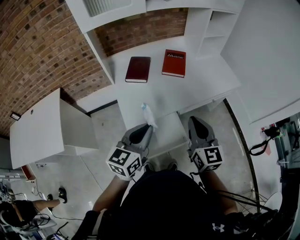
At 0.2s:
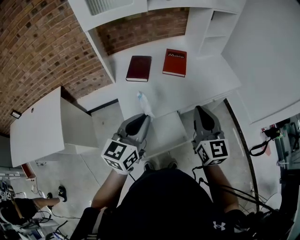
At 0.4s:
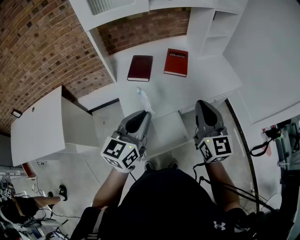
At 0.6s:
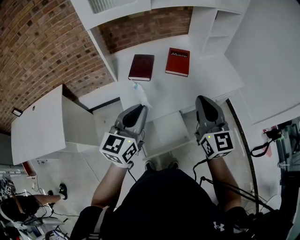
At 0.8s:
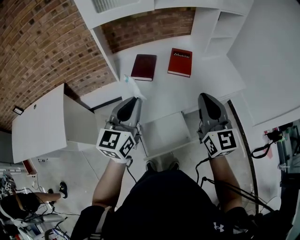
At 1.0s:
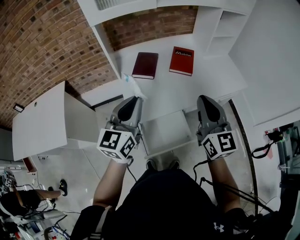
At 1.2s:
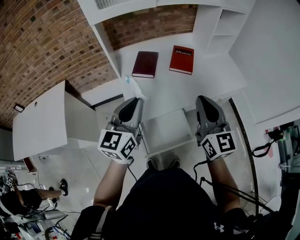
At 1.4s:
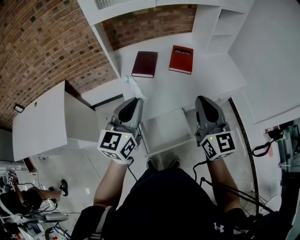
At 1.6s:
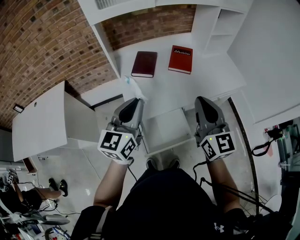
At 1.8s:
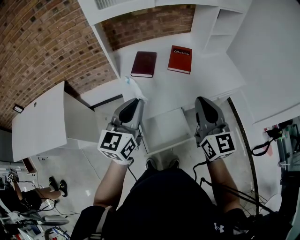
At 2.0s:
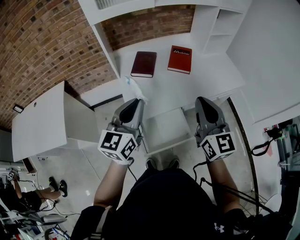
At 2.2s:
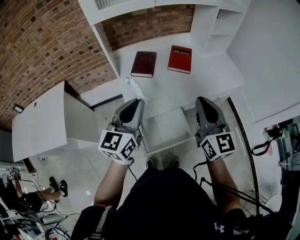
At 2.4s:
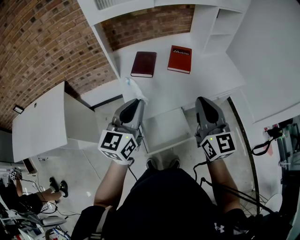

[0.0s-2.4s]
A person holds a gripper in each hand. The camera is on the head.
0.0s to 1.2s: The right gripper travels upward by some 5 cm, while the left gripper shifts about 10 cm upward, to the left and forward.
1.2s to 2.4s: The grippers make only small movements.

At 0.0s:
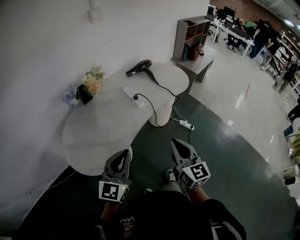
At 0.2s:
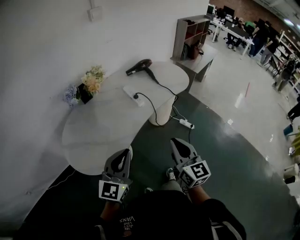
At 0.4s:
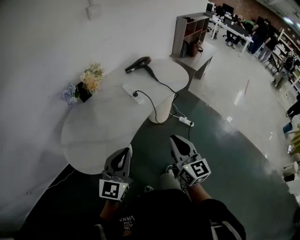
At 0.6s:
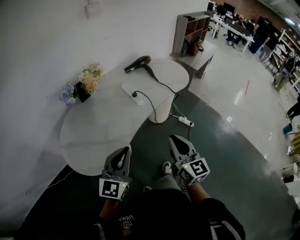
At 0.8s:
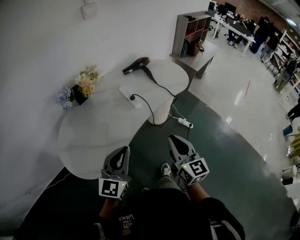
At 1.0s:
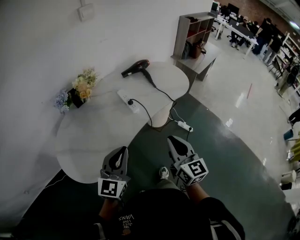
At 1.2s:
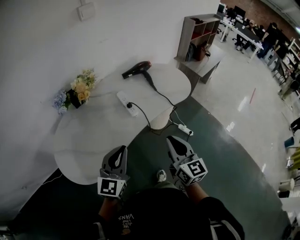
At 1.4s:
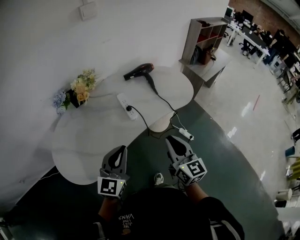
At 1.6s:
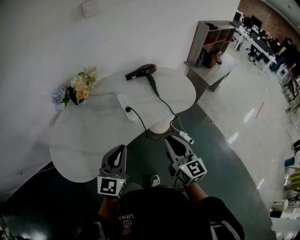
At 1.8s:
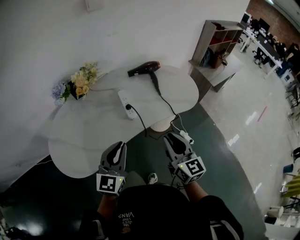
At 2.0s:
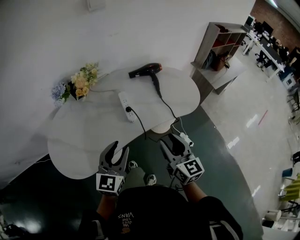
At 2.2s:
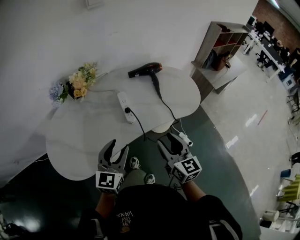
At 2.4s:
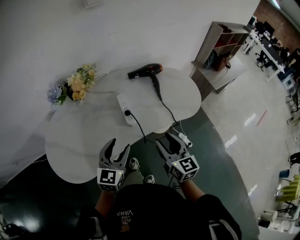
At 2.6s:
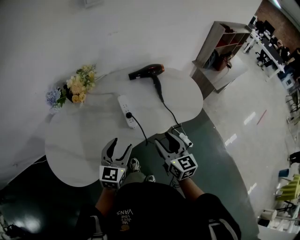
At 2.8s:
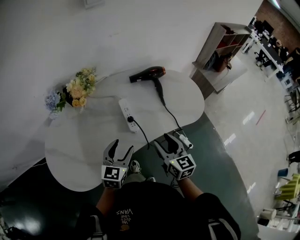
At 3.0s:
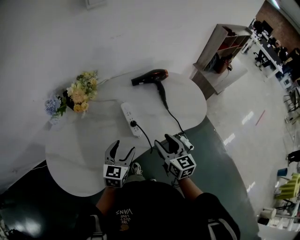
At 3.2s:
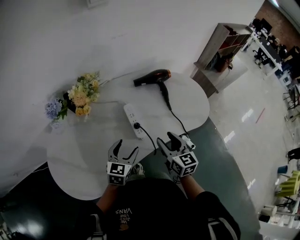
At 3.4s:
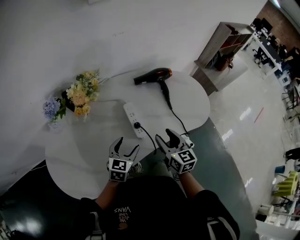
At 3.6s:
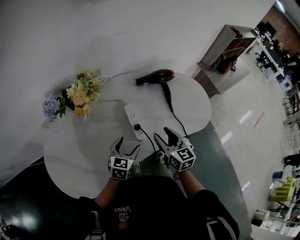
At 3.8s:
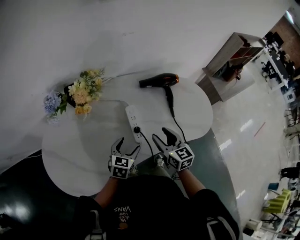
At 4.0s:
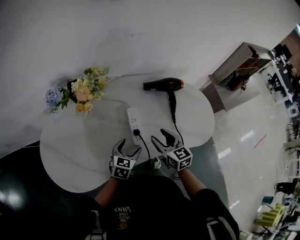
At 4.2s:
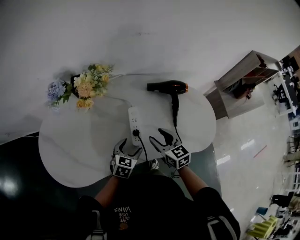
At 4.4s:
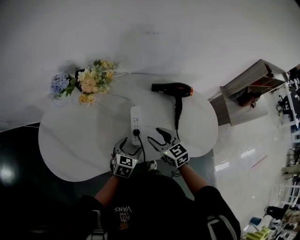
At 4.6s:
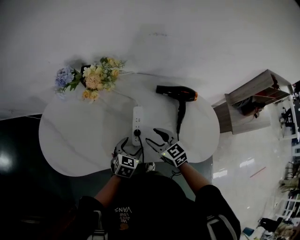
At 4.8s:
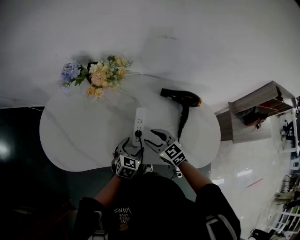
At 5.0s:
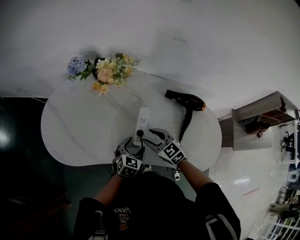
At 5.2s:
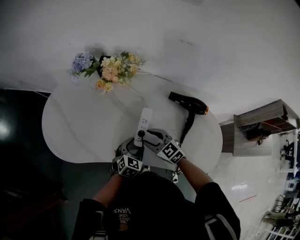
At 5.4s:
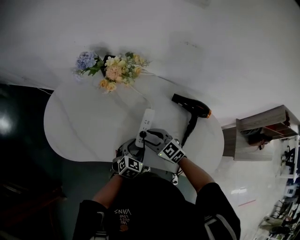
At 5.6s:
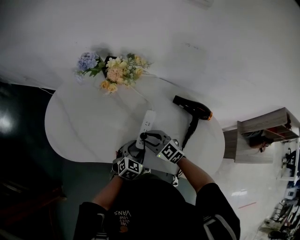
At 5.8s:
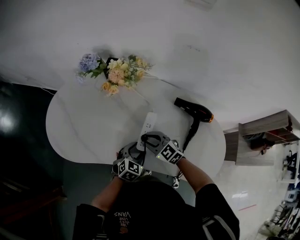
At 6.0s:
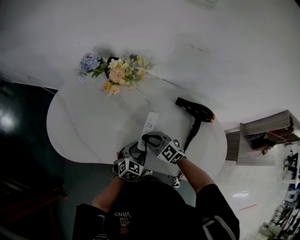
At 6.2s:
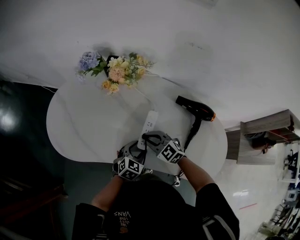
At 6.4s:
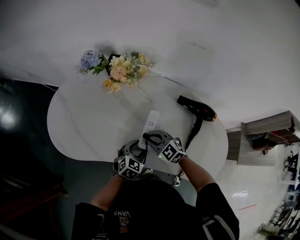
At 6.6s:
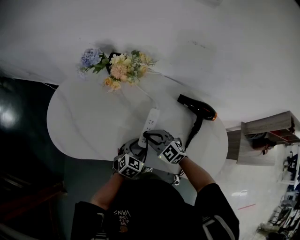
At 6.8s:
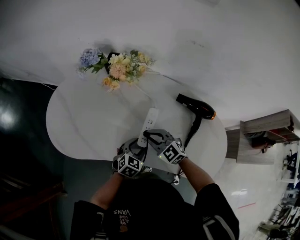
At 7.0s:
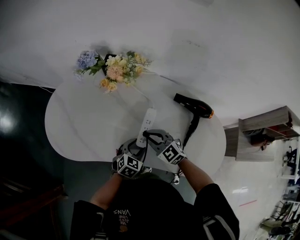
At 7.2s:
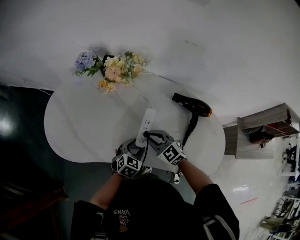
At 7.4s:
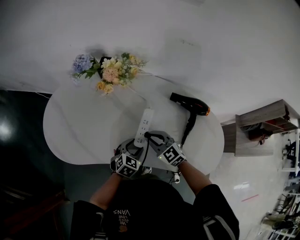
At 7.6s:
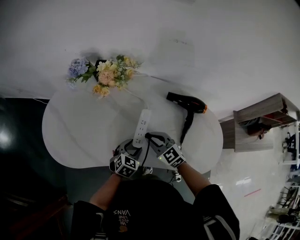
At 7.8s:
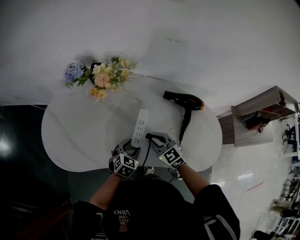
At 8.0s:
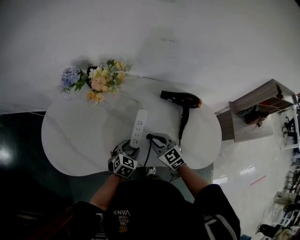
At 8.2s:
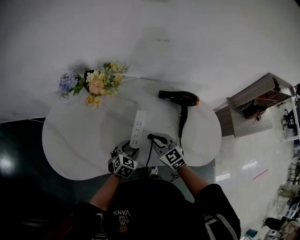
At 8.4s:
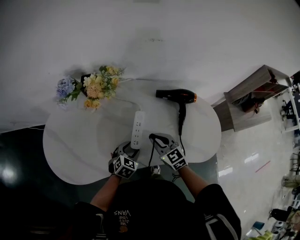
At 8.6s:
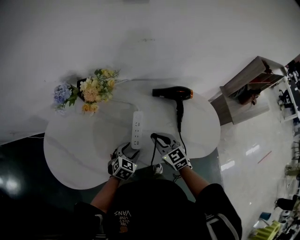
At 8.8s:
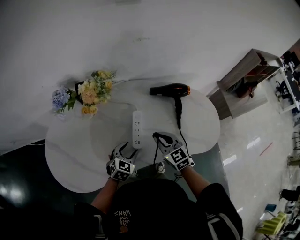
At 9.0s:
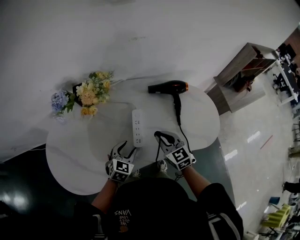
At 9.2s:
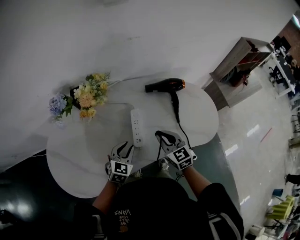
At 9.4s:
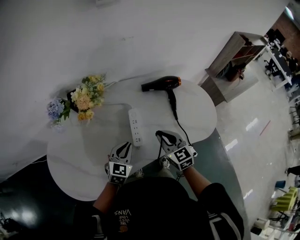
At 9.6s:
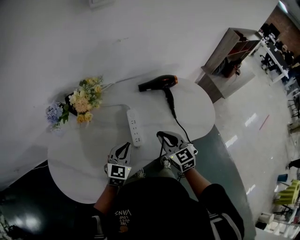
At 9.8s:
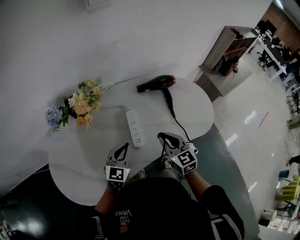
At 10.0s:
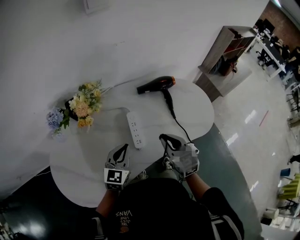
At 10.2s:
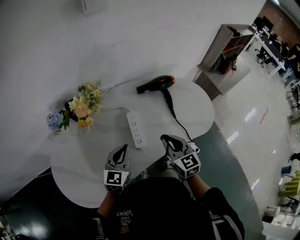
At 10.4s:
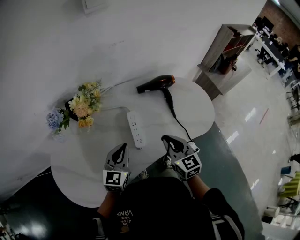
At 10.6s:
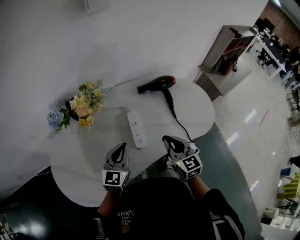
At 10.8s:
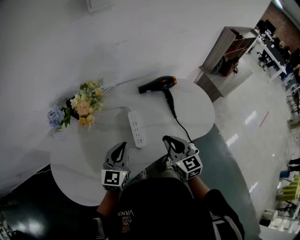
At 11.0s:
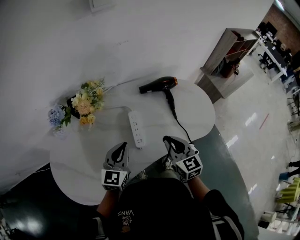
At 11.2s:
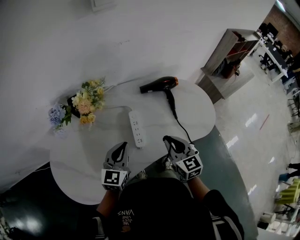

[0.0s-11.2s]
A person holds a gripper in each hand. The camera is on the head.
0.0s to 1.6s: The two grippers go about 20 cm forward and to the right.
1.6s to 3.2s: The two grippers go approximately 25 cm forward and downward. The left gripper rotates approximately 30 degrees, and opens. Meanwhile the right gripper opens.
3.2s to 4.8s: The left gripper is displaced downward by some 10 cm, and swivels approximately 30 degrees. Meanwhile the right gripper moves approximately 15 cm, and swivels some 60 degrees.
4.8s to 6.4s: The right gripper changes place by roughly 5 cm, turns by approximately 30 degrees, and closes its fingers.
6.4s to 8.0s: The right gripper ends up approximately 5 cm from where it was, and turns by approximately 30 degrees.
8.0s to 9.6s: The left gripper is displaced upward by approximately 10 cm, rotates about 30 degrees, and closes up; the right gripper moves approximately 10 cm, and rotates some 40 degrees.
9.6s to 11.2s: The left gripper heads upward, covering about 5 cm.

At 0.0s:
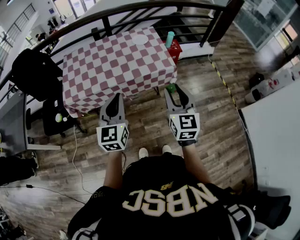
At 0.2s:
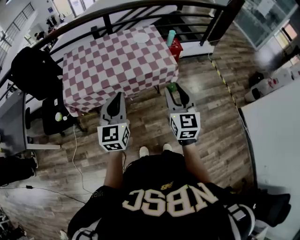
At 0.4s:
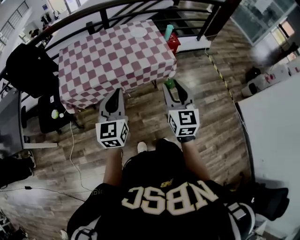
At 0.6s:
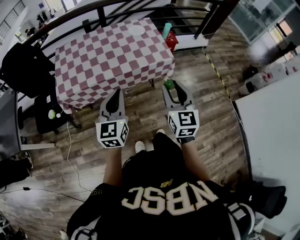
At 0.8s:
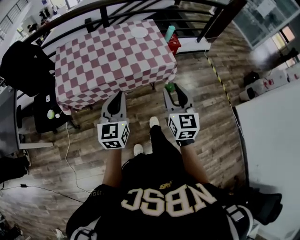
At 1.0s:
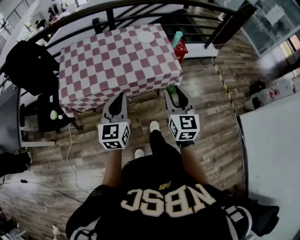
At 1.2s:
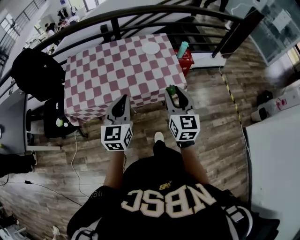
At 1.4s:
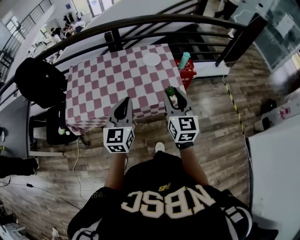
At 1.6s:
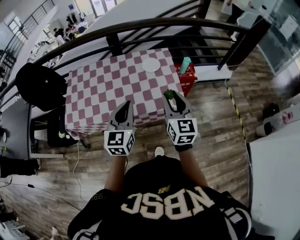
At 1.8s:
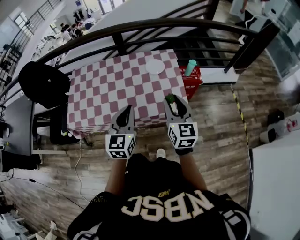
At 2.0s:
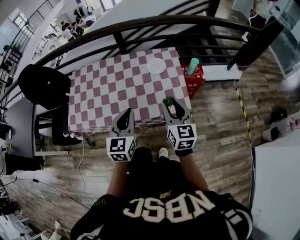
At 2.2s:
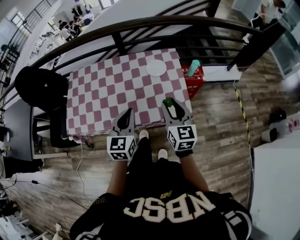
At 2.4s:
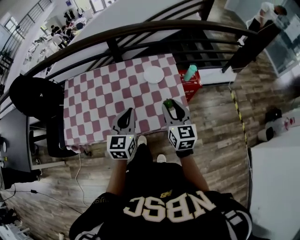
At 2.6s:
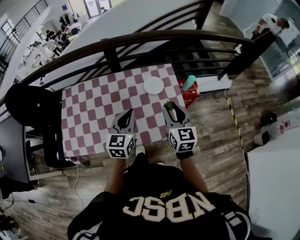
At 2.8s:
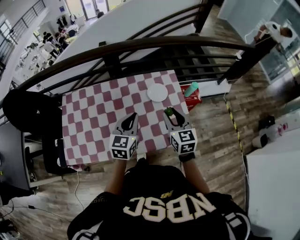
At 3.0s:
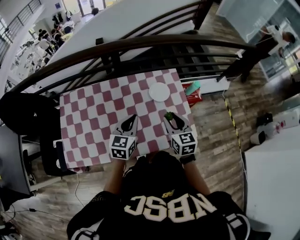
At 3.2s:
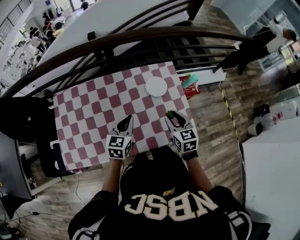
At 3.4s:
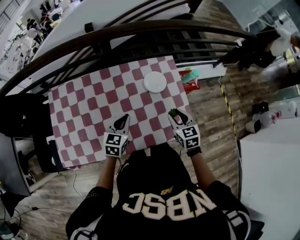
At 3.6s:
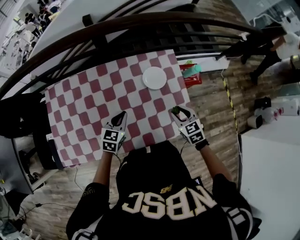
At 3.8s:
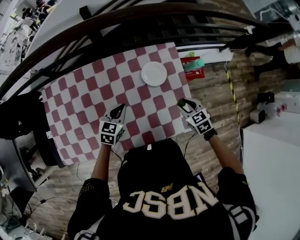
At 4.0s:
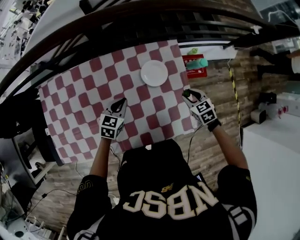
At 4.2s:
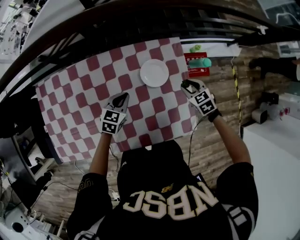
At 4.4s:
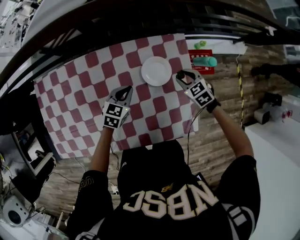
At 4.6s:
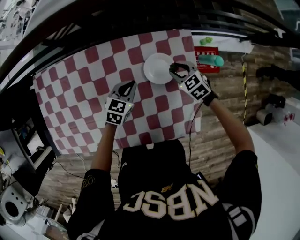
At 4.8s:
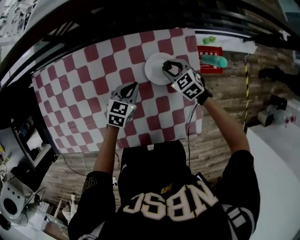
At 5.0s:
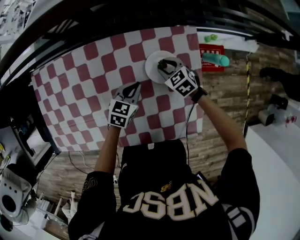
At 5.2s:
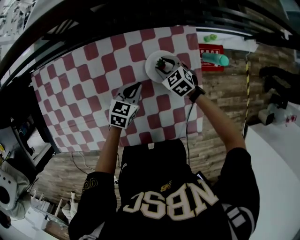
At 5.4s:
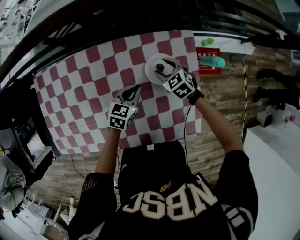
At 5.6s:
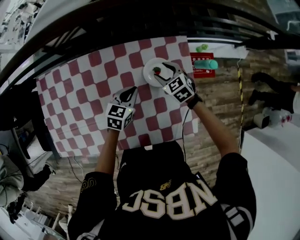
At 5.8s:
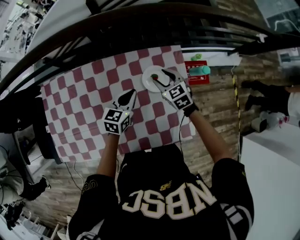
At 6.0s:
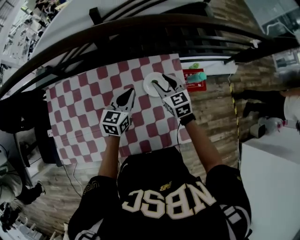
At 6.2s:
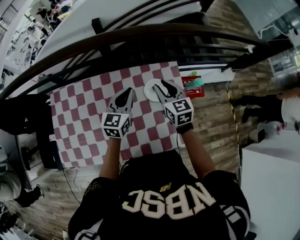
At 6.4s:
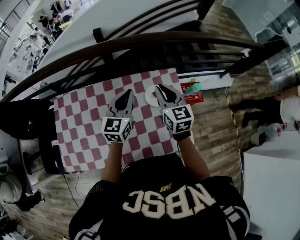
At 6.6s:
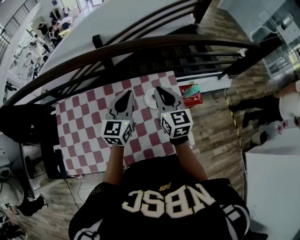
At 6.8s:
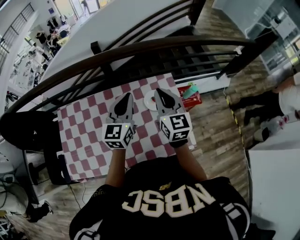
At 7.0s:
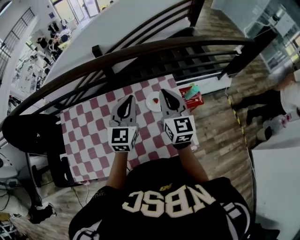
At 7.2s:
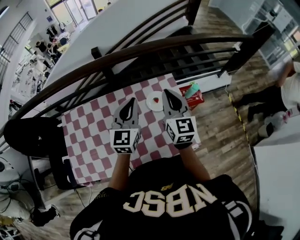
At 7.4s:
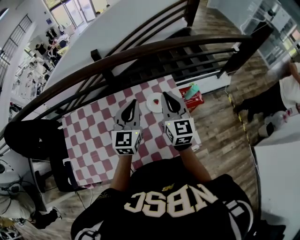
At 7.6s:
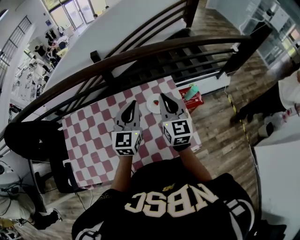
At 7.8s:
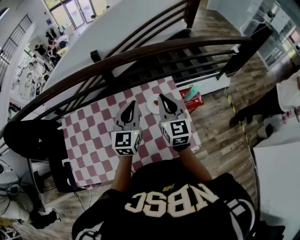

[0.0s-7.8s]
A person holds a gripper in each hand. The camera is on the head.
0.0s to 1.6s: The two grippers go some 25 cm forward.
1.6s to 3.2s: Both grippers move forward and downward, about 30 cm. The left gripper swivels approximately 20 degrees; the right gripper rotates some 30 degrees.
3.2s to 4.6s: The right gripper is displaced forward and downward by roughly 30 cm, and changes its angle by approximately 40 degrees. The left gripper goes about 25 cm downward and forward.
4.6s to 6.2s: Both grippers travel together upward, roughly 25 cm. The left gripper swivels about 30 degrees, while the right gripper rotates roughly 40 degrees.
6.2s to 7.8s: Both grippers travel together upward and backward, roughly 15 cm. The right gripper swivels approximately 20 degrees, and closes up.

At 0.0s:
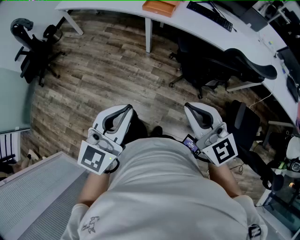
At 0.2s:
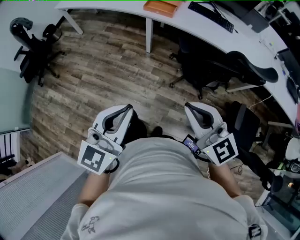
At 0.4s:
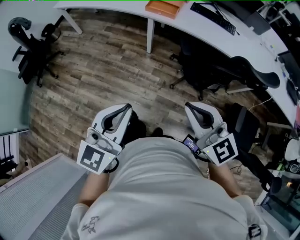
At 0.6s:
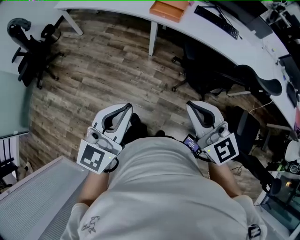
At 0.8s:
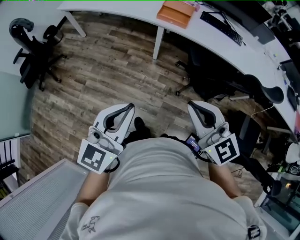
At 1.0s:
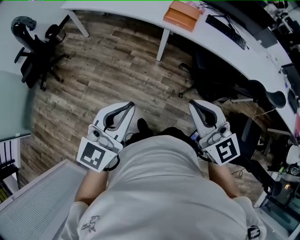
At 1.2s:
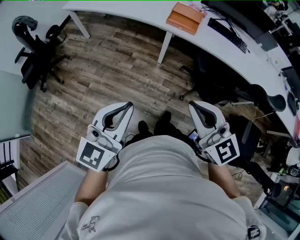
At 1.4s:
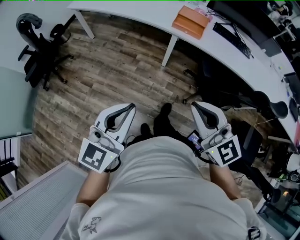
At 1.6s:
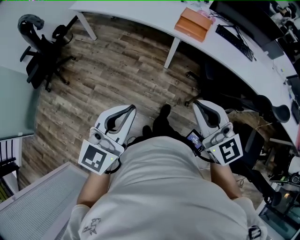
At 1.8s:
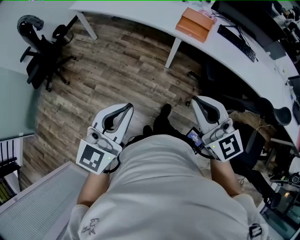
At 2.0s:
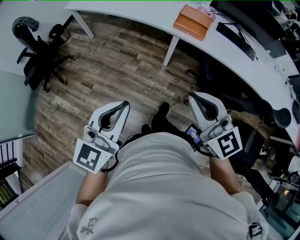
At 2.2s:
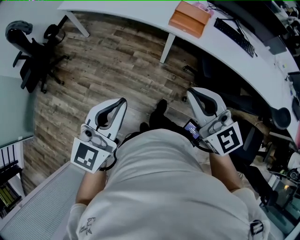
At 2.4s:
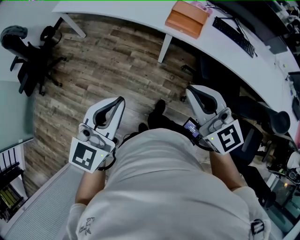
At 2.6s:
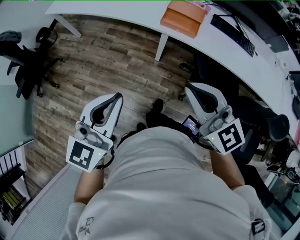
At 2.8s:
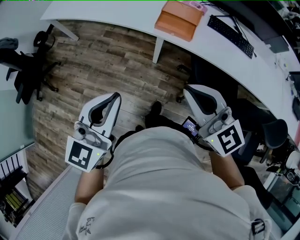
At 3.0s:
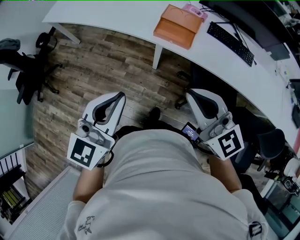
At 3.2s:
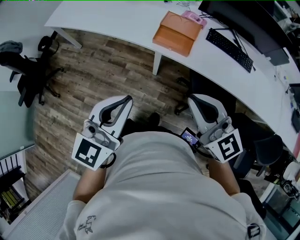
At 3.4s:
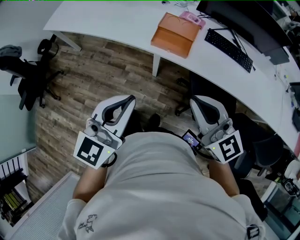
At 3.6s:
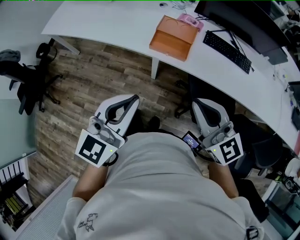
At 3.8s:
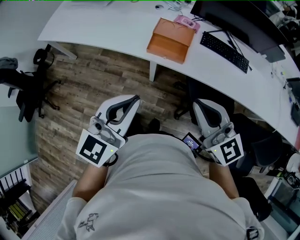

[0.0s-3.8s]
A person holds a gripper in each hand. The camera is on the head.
0.0s to 1.2s: The grippers both shift to the left and forward by roughly 25 cm.
1.2s to 2.6s: The grippers both shift forward by about 25 cm.
2.6s to 3.8s: Both grippers travel together forward and to the right, approximately 20 cm.
